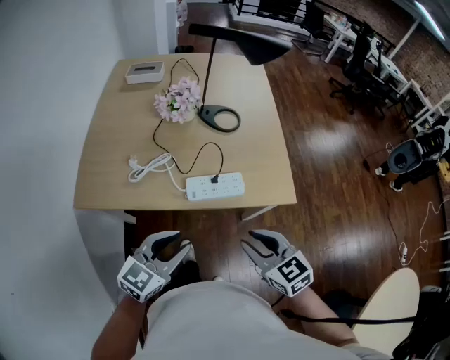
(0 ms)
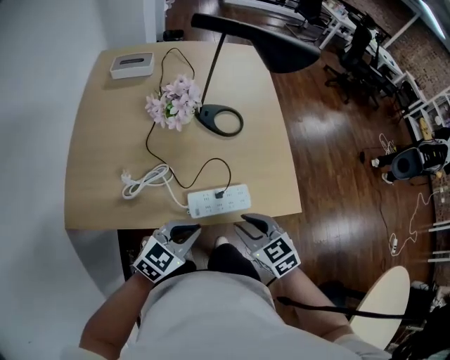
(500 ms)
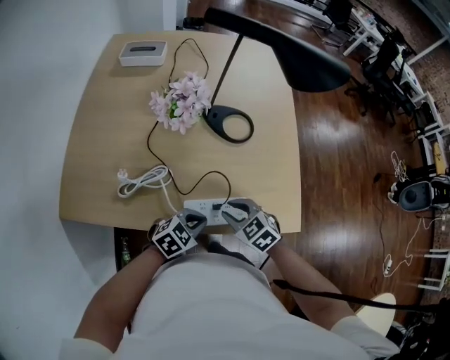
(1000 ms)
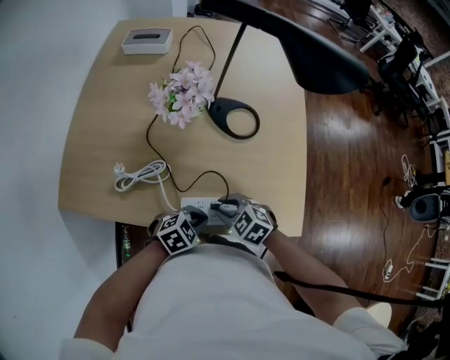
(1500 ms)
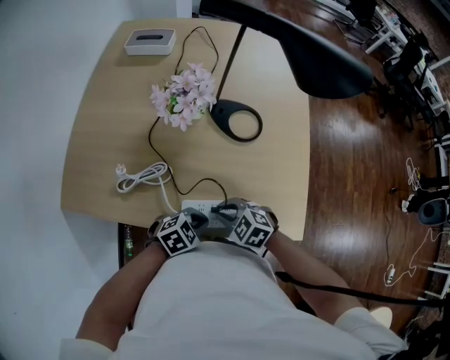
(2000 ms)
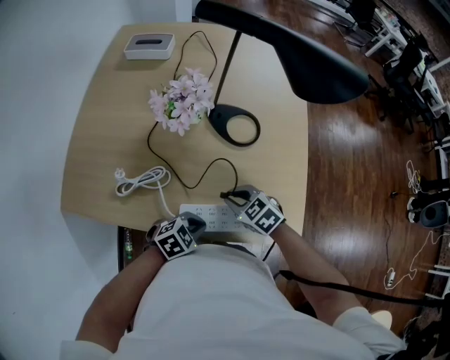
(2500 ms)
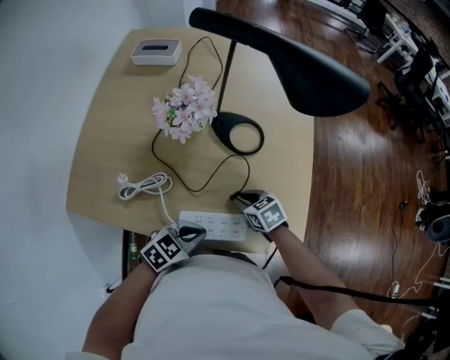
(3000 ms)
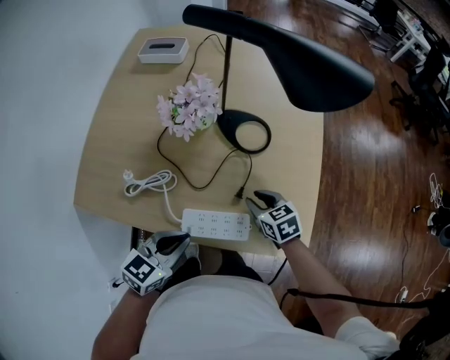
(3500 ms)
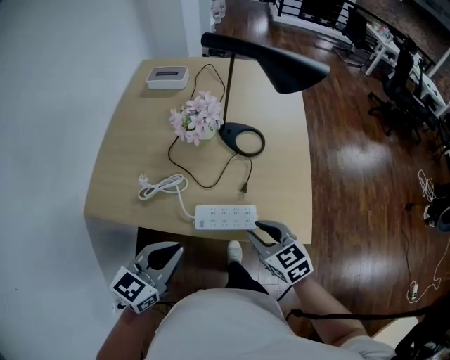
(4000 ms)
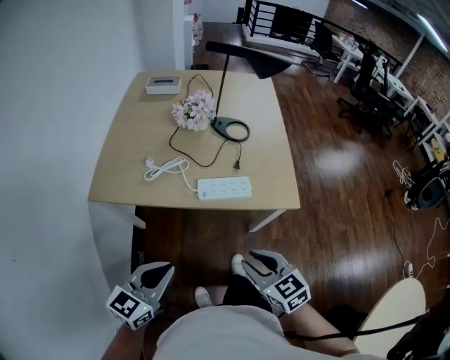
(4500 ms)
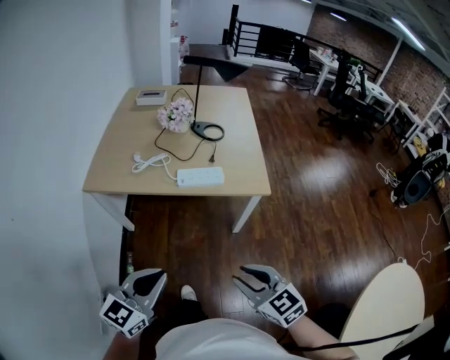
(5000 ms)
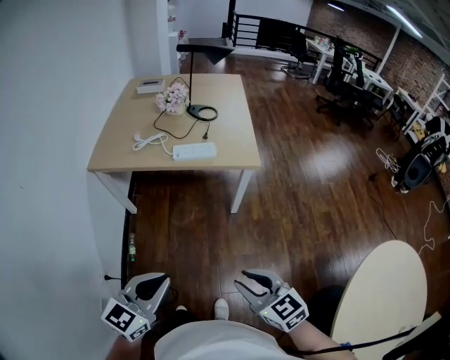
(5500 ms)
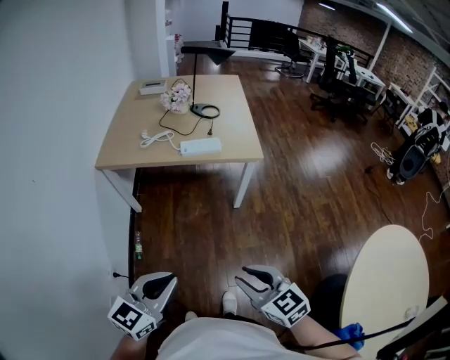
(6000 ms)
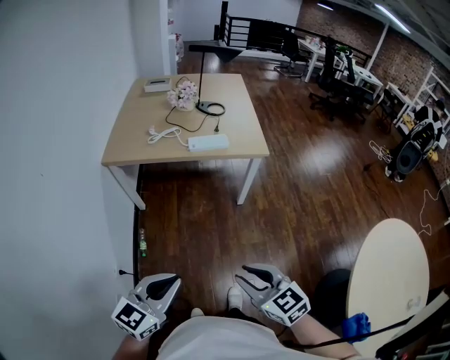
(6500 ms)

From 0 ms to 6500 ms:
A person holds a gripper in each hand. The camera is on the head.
From 0 ms to 2000 ms: The right gripper ends up some 30 cm from where it was, and swivels about 40 degrees. Meanwhile the left gripper travels downward by about 20 cm, points its fingers roughly 30 degrees further downward, and closes up.
From 2000 ms to 4500 ms: The right gripper moves approximately 35 cm, and swivels about 40 degrees, while the left gripper moves about 40 cm, and tips its fingers upward by roughly 40 degrees.
From 4500 ms to 6500 ms: Both grippers travel together backward, approximately 40 cm.

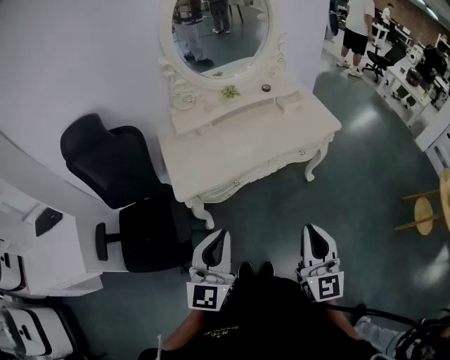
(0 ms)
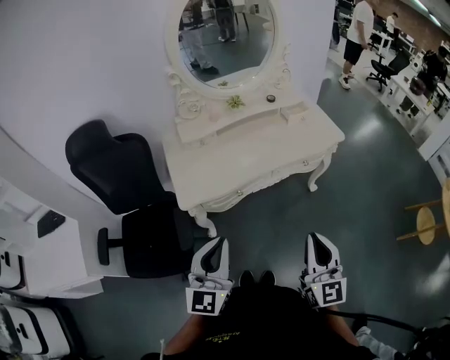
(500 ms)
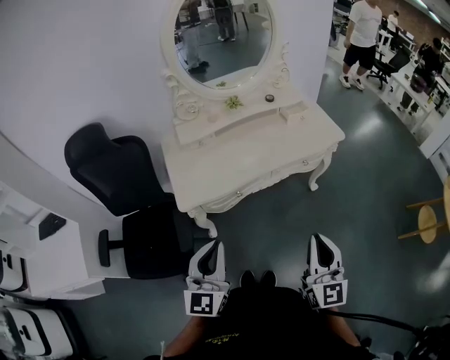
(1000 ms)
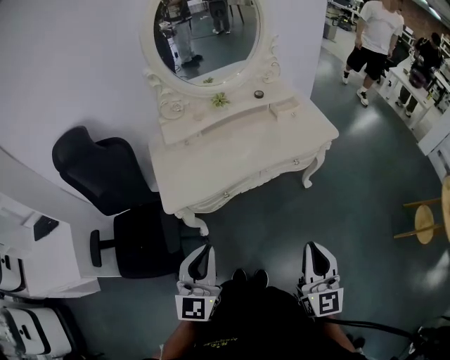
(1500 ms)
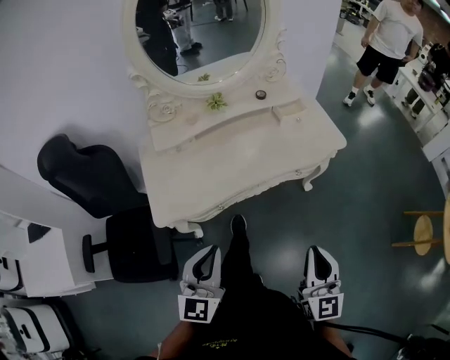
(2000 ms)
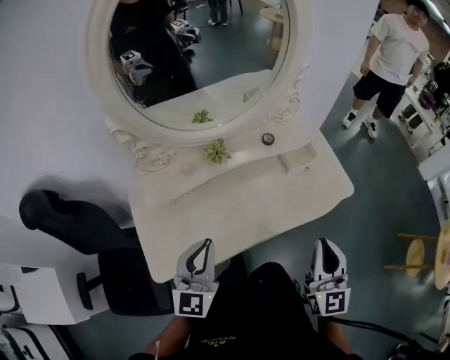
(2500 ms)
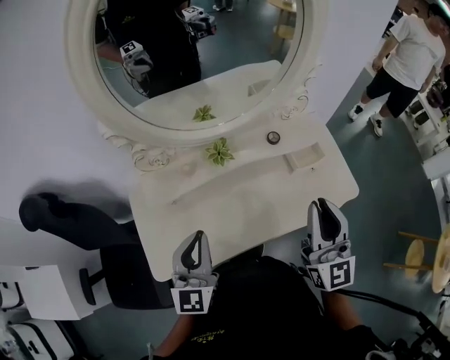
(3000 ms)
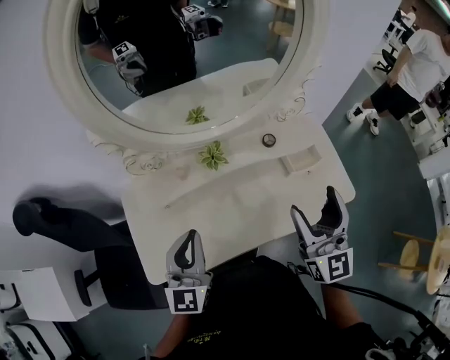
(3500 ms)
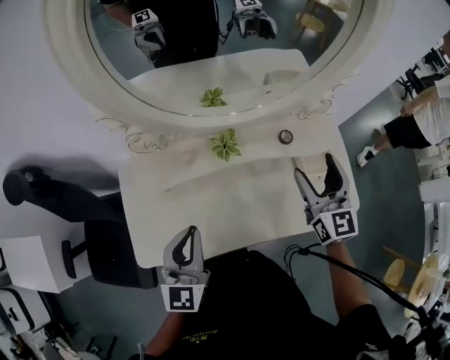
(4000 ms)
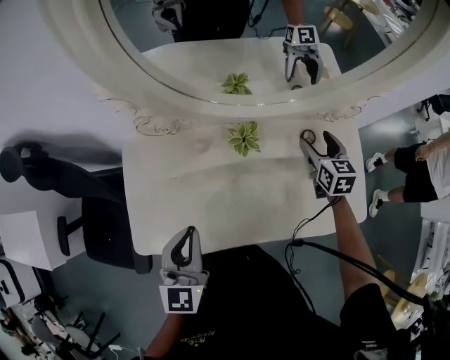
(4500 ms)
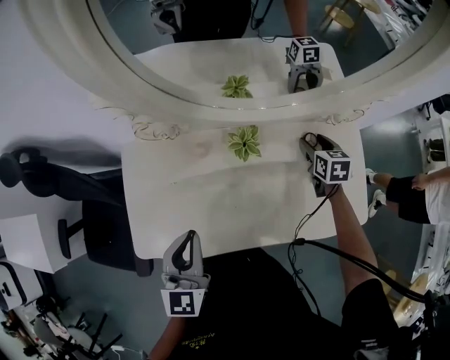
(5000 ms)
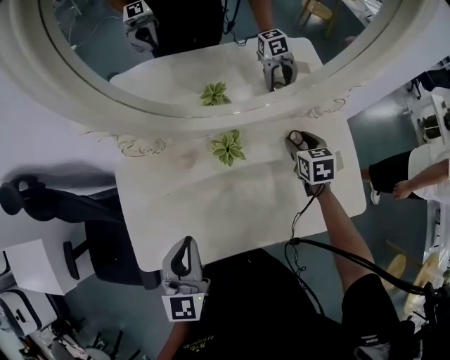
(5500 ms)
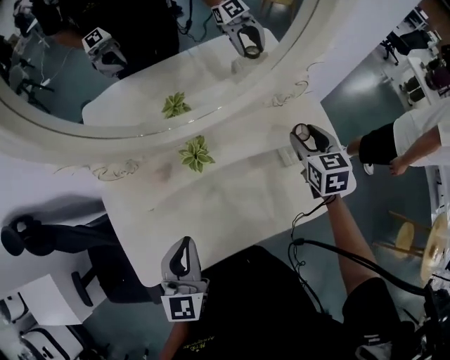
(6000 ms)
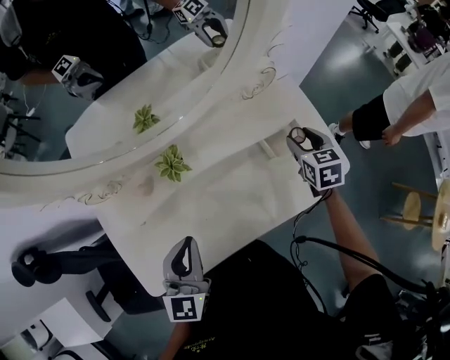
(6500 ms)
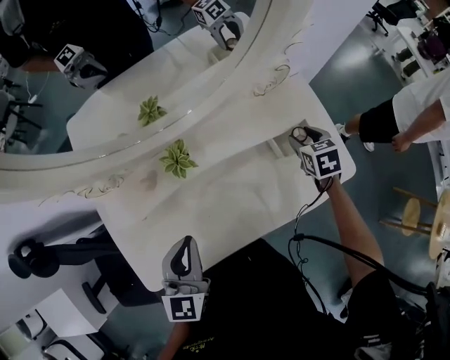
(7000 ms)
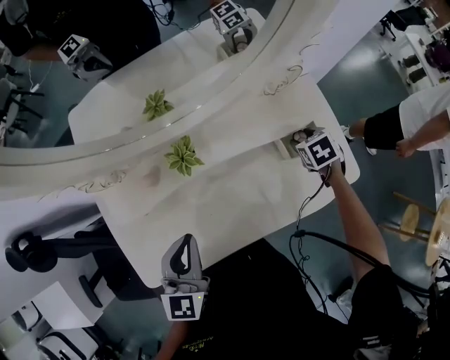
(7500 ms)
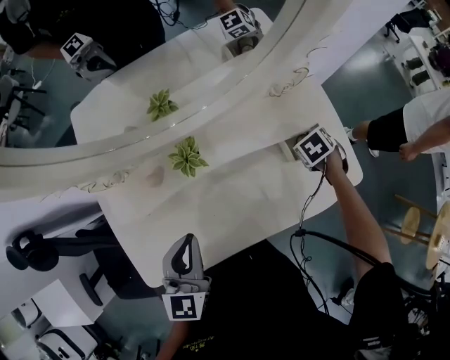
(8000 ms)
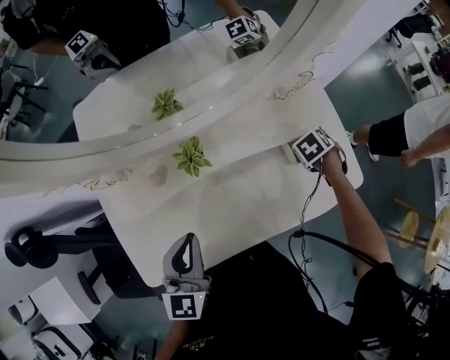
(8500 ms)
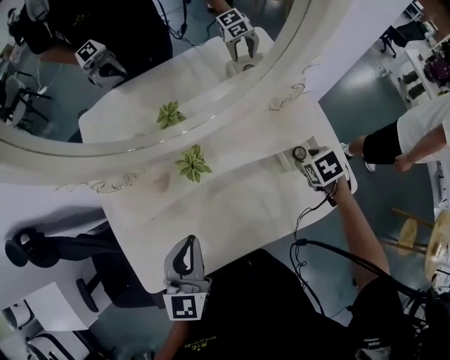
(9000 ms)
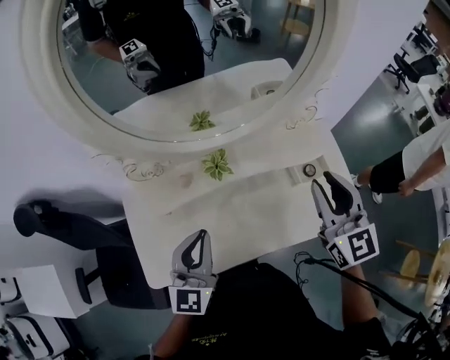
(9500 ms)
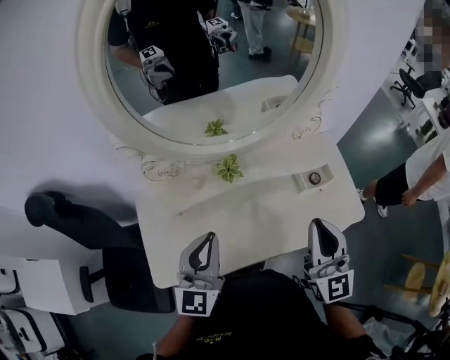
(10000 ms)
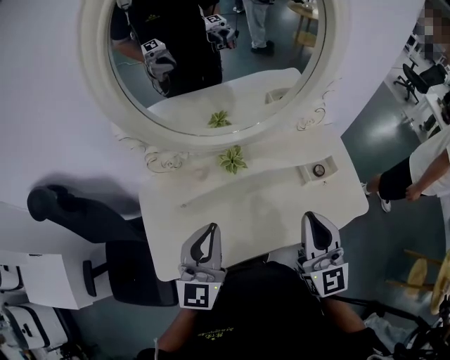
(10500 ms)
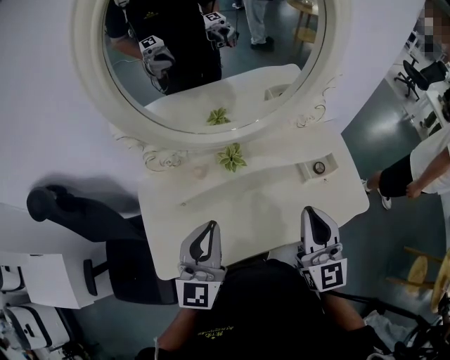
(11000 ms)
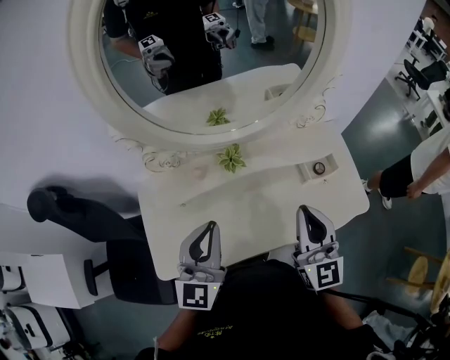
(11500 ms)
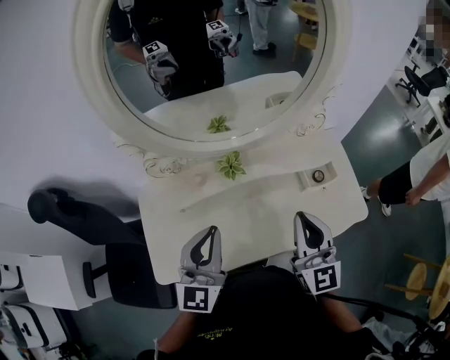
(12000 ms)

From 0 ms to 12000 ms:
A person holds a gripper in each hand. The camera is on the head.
From 0 ms to 2000 ms: The right gripper goes some 15 cm forward, to the right and downward, while the left gripper goes roughly 15 cm forward, downward and to the right.
From 2000 ms to 4000 ms: The right gripper moves forward, roughly 50 cm, and opens. Meanwhile the left gripper heads forward, covering about 35 cm.
From 4000 ms to 6000 ms: The left gripper ends up roughly 5 cm from where it was; the right gripper shifts roughly 15 cm downward, to the right and forward, rotates approximately 30 degrees, and closes.
From 6000 ms to 8000 ms: The right gripper heads downward, covering some 15 cm, and points its fingers some 50 degrees further downward.
From 8000 ms to 10000 ms: The right gripper moves upward, some 30 cm, tips its fingers upward by roughly 80 degrees, and closes up, while the left gripper shifts about 10 cm upward.
From 10000 ms to 12000 ms: The grippers stay close to where they were, moving slightly.

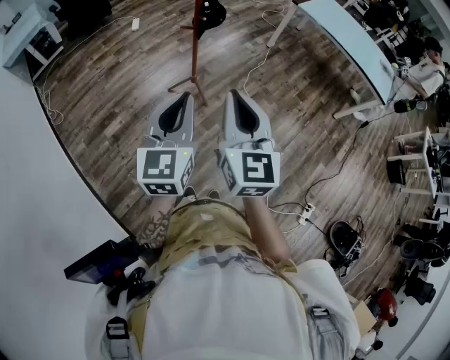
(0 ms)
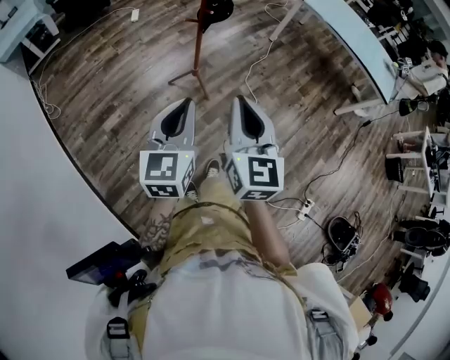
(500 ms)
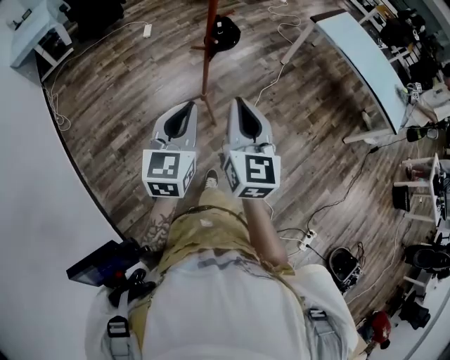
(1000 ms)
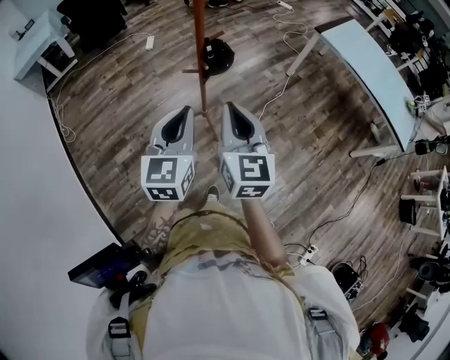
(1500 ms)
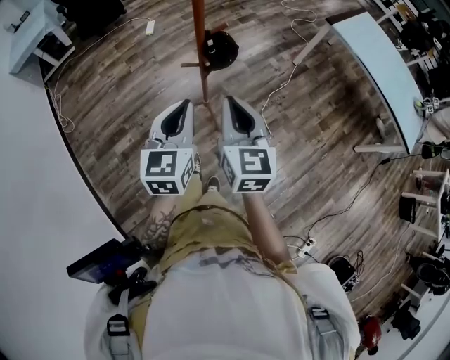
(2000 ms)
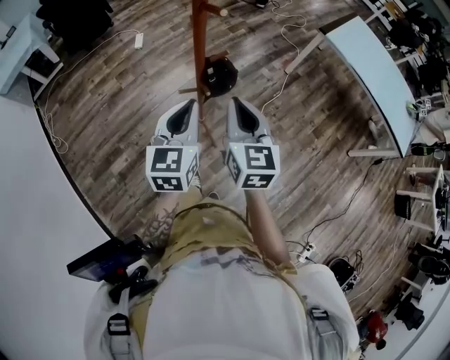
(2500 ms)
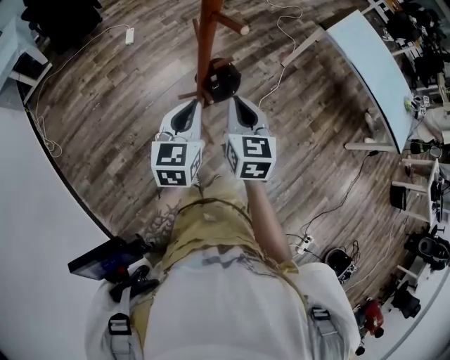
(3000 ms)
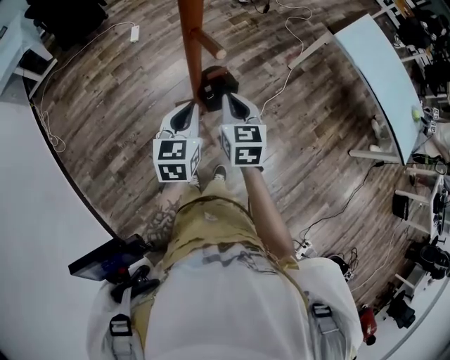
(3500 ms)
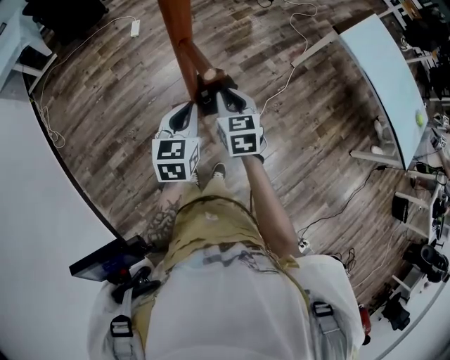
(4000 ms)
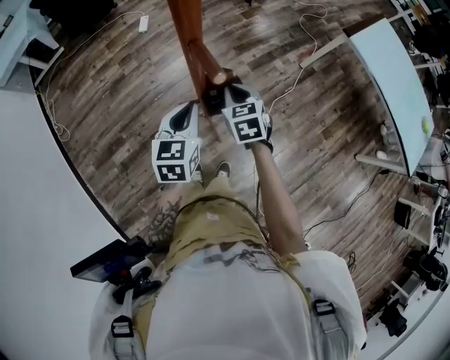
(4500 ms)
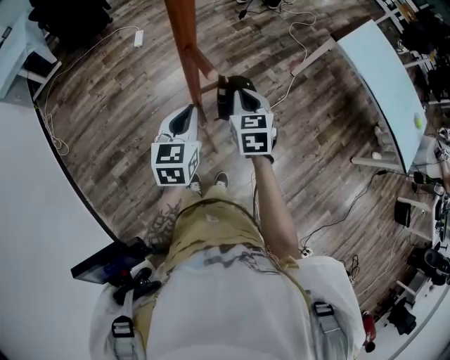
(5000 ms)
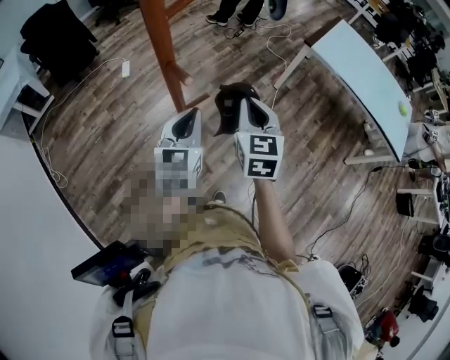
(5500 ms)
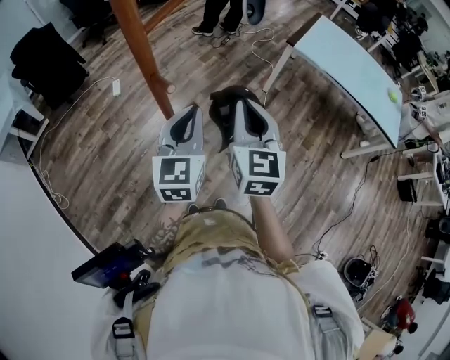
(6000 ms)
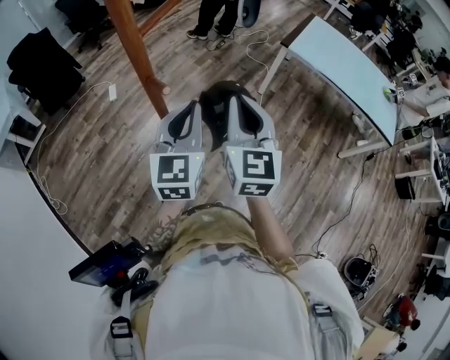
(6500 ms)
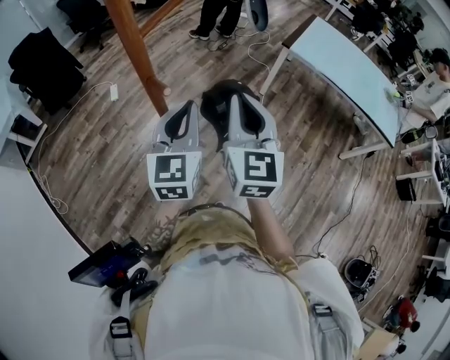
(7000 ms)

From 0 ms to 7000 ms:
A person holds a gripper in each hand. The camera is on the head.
From 0 ms to 2000 ms: Both grippers travel together forward, roughly 35 cm.
From 2000 ms to 3500 ms: Both grippers move forward, about 25 cm.
From 3500 ms to 5000 ms: The right gripper goes some 5 cm forward.
From 5000 ms to 7000 ms: Both grippers travel together upward and to the right, about 20 cm. The left gripper changes its angle by roughly 20 degrees, while the right gripper tilts its fingers approximately 30 degrees upward.

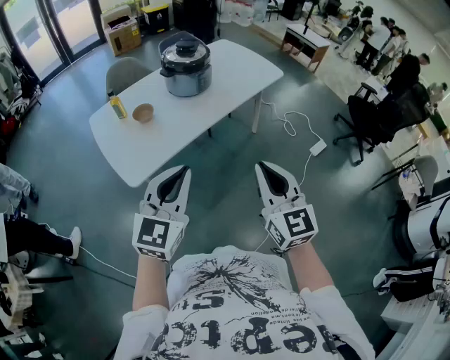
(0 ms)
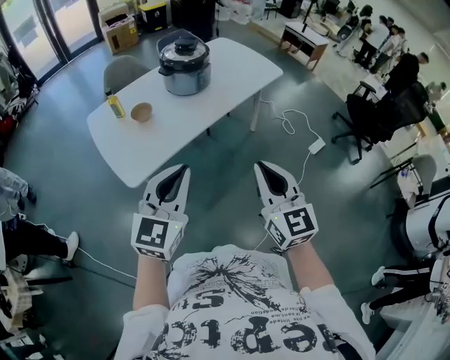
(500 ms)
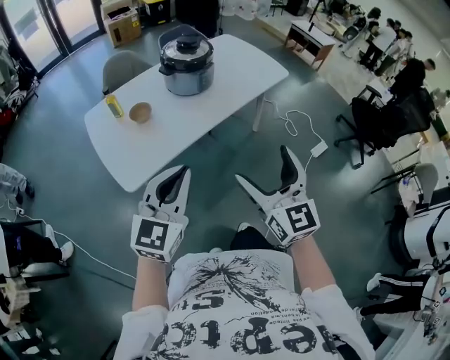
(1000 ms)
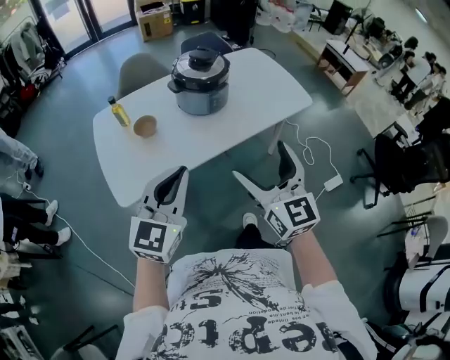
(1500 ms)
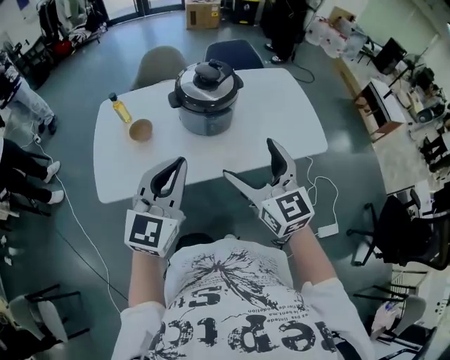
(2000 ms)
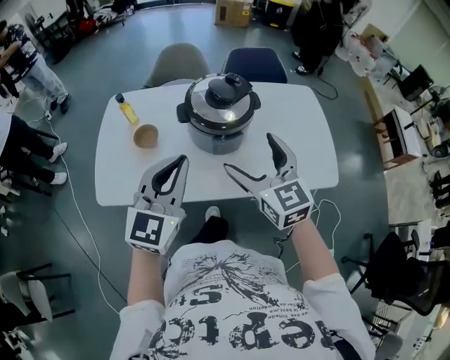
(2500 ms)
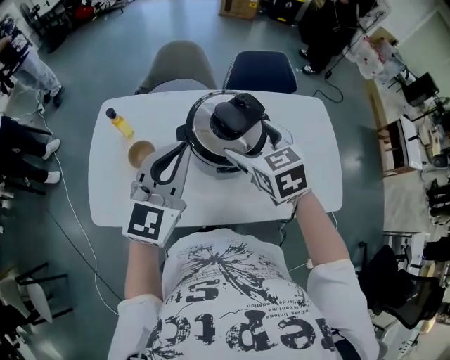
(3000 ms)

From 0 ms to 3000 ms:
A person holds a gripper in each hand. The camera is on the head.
From 0 ms to 1500 ms: The two grippers go approximately 30 cm forward. The right gripper opens.
From 1500 ms to 3000 ms: The two grippers travel together, some 60 cm. The left gripper swivels some 30 degrees, while the right gripper angles its fingers downward, by roughly 40 degrees.
